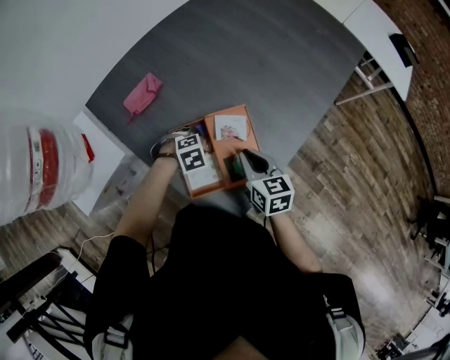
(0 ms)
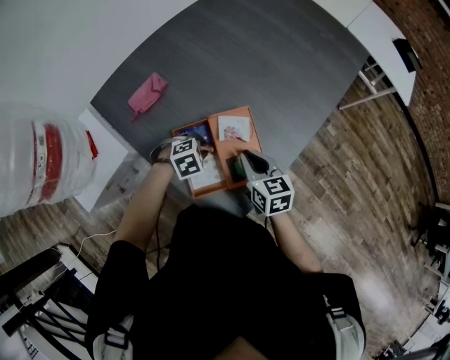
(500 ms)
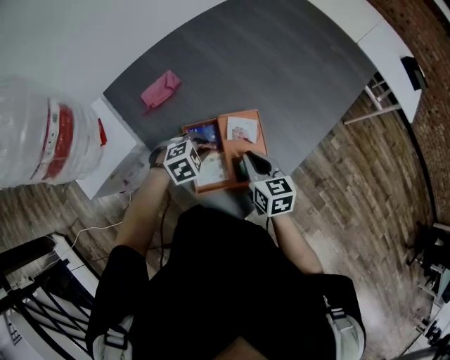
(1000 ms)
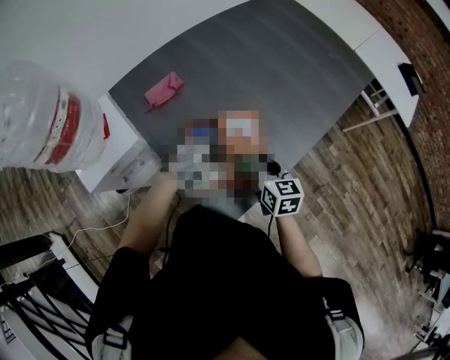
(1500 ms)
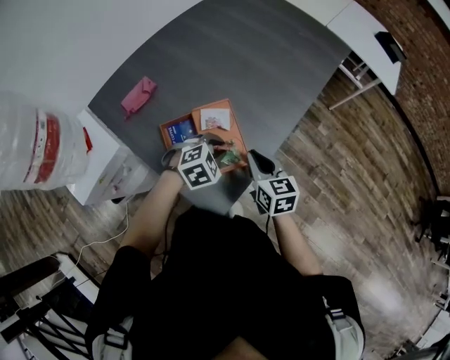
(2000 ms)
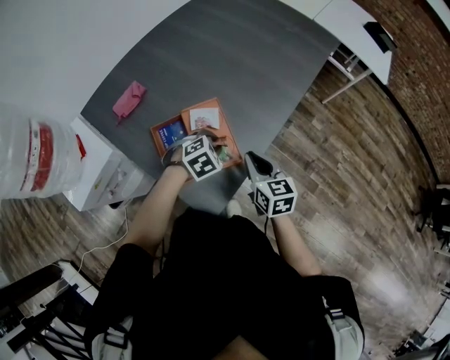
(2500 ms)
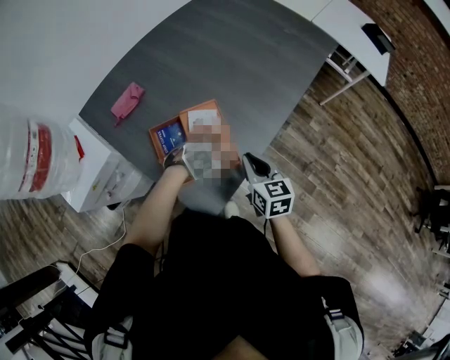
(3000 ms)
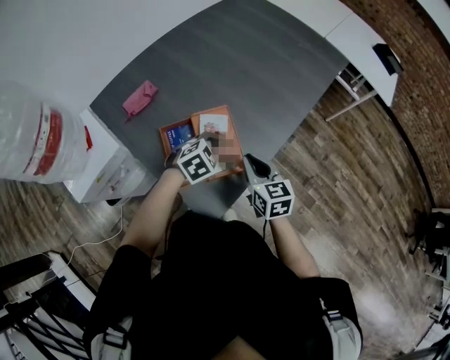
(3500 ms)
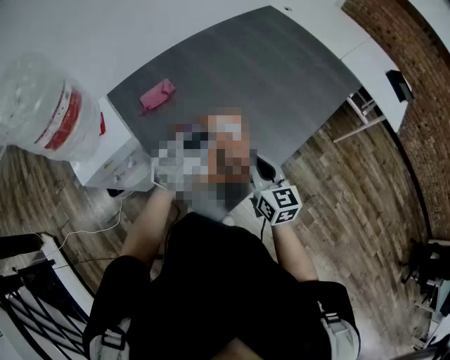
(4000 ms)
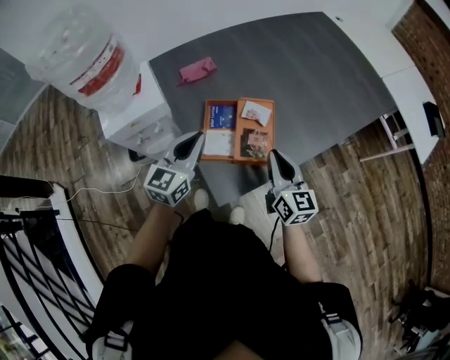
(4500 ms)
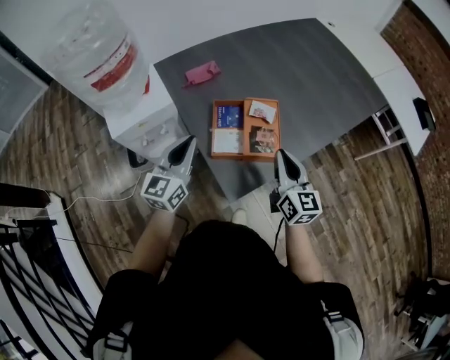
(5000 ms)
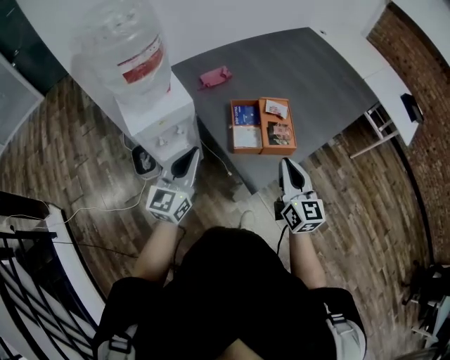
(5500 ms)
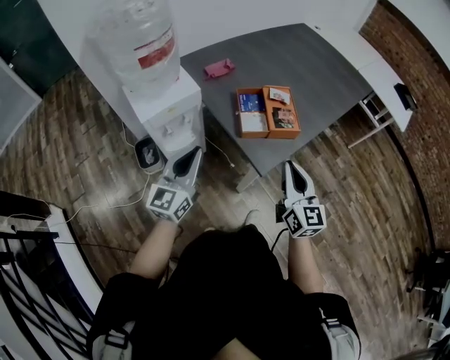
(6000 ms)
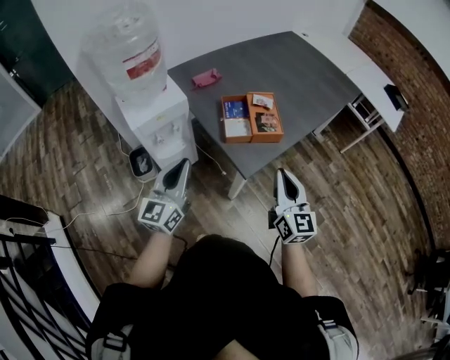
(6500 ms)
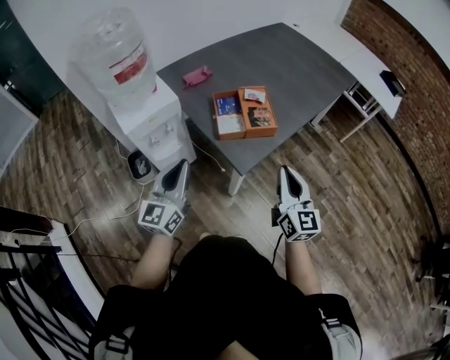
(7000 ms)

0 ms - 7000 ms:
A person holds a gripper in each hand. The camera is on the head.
0 ms - 2000 ms: The left gripper is displaced upward by about 10 cm, turns by some 20 degrees, and closes; the right gripper shifts by approximately 5 cm.
2000 ms - 3500 ms: The left gripper opens its fingers.
3500 ms - 5000 ms: The right gripper goes roughly 5 cm upward, and turns by some 20 degrees. The left gripper moves roughly 30 cm, tips its fingers upward by about 50 degrees, and closes.
5000 ms - 7000 ms: Both grippers move backward, about 20 cm.

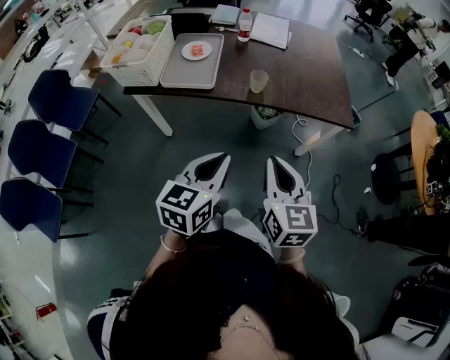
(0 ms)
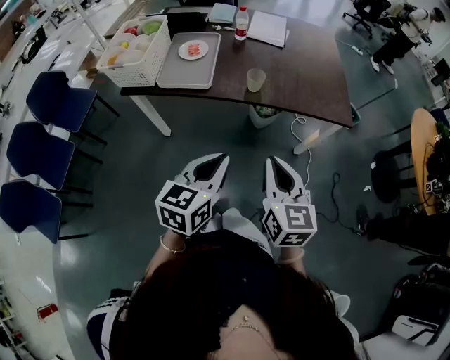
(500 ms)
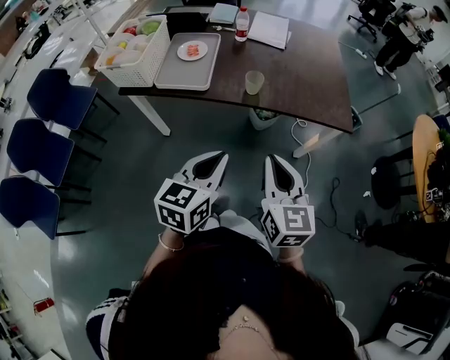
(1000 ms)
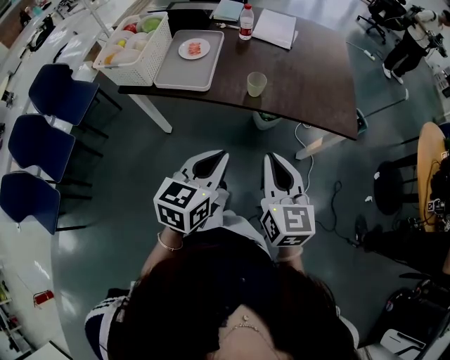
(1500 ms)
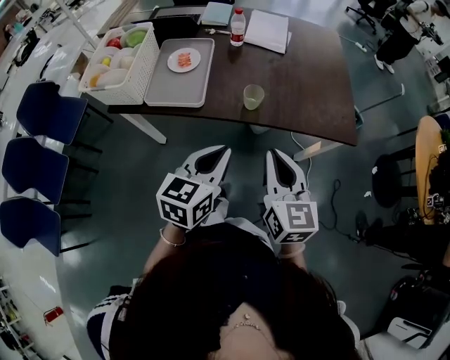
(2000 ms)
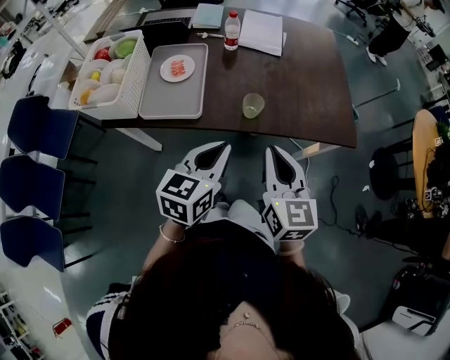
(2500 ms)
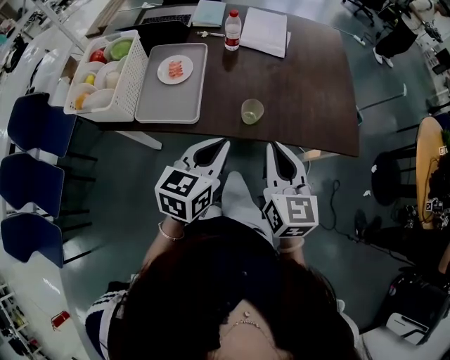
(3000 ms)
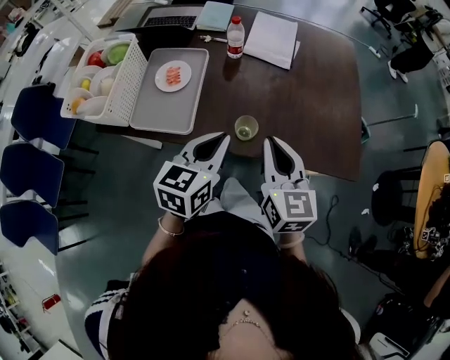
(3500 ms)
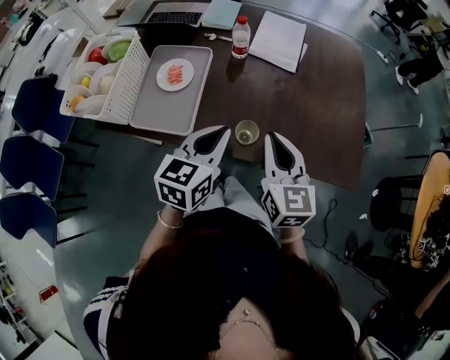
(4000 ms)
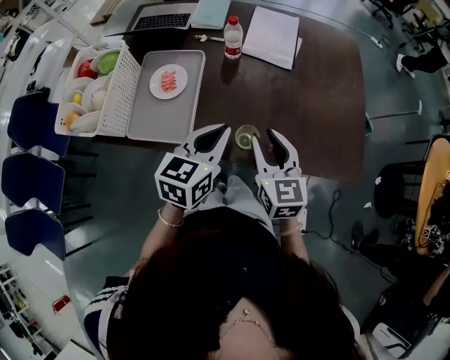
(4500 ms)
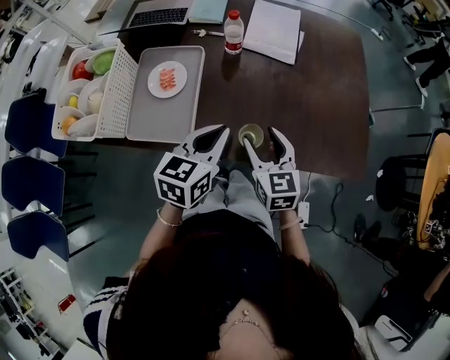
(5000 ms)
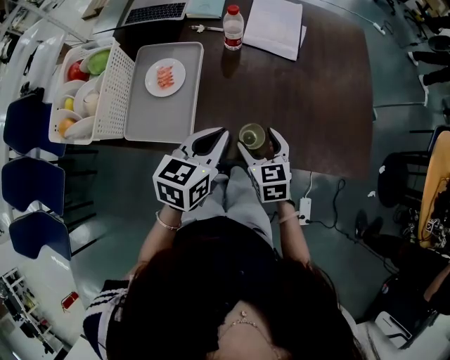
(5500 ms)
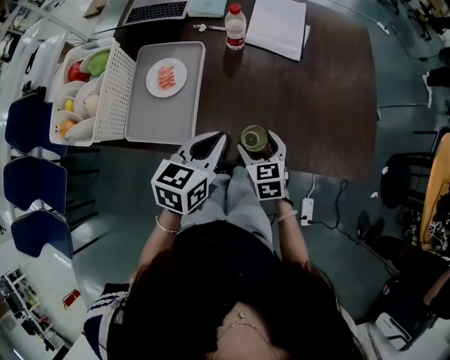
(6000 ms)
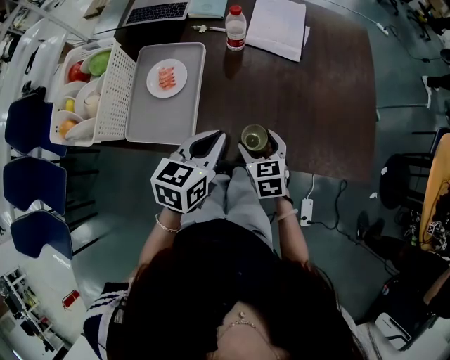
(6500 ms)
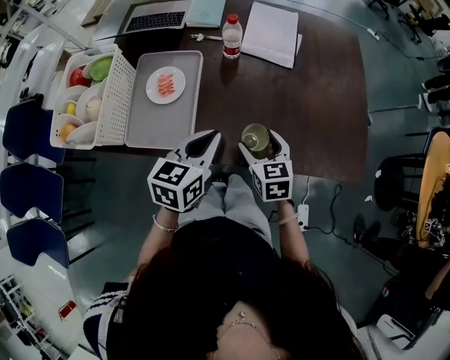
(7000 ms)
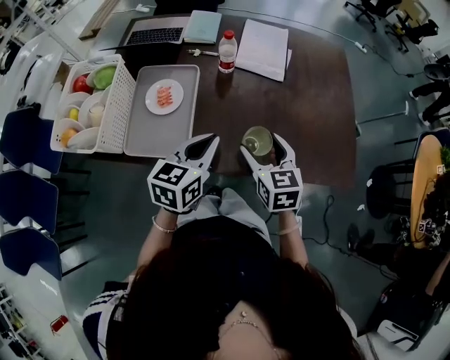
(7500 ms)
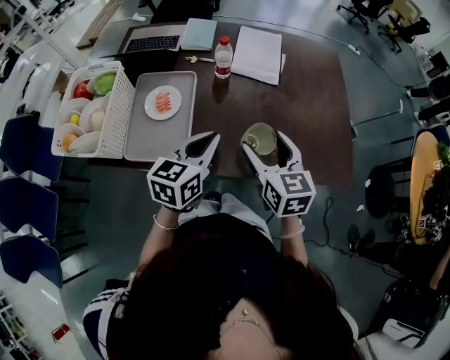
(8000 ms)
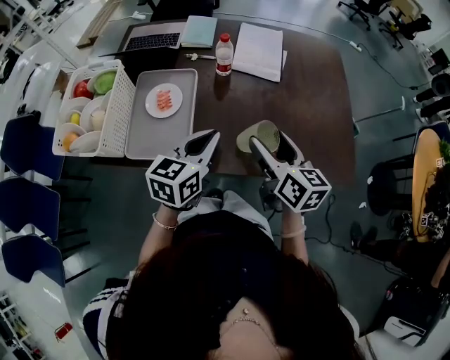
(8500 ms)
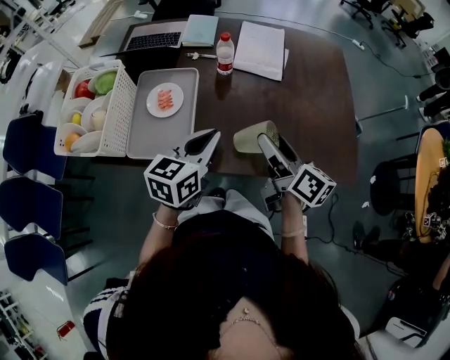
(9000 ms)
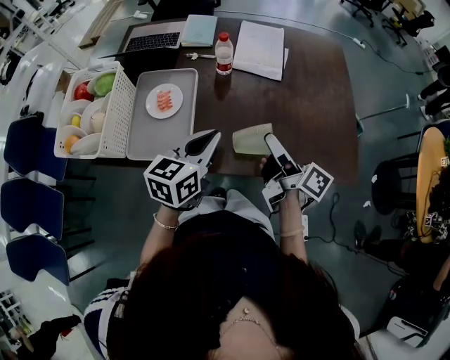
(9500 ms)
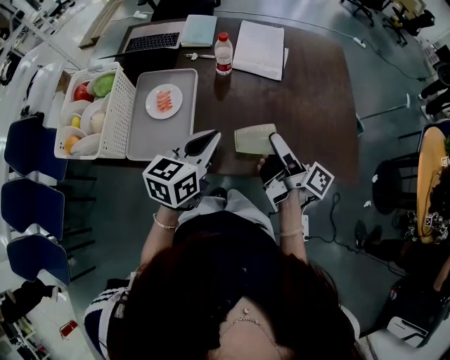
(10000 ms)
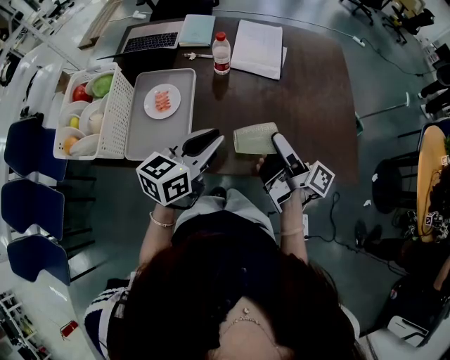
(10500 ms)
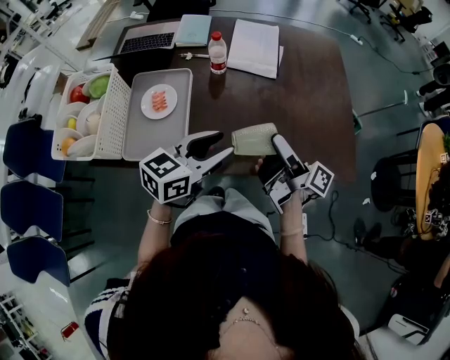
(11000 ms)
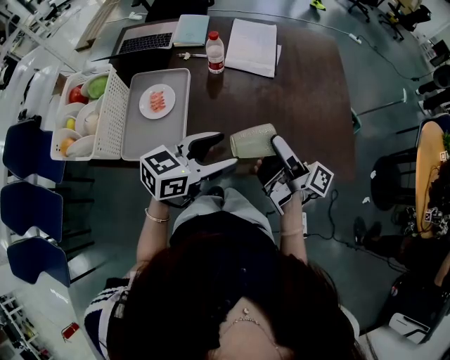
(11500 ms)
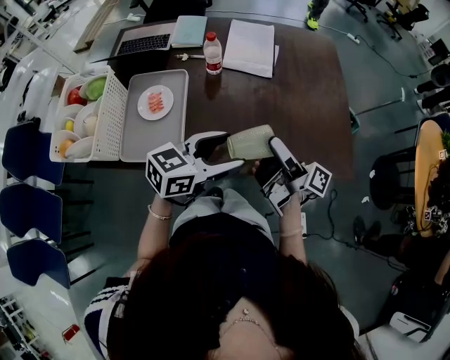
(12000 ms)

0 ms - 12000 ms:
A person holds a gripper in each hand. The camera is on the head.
0 ms - 2000 ms: The two grippers go some 15 cm forward.
2000 ms - 4000 ms: The grippers both shift forward by approximately 20 cm.
4000 ms - 6000 ms: The left gripper shifts some 5 cm downward, while the right gripper goes some 20 cm downward, turns by approximately 30 degrees, and opens.
6000 ms - 8000 ms: The right gripper goes approximately 20 cm upward. Meanwhile the left gripper goes roughly 5 cm upward.
8000 ms - 10000 ms: The right gripper ends up roughly 5 cm from where it was, and rolls clockwise, seen from behind, by approximately 70 degrees.
10000 ms - 12000 ms: The left gripper goes roughly 10 cm to the right, changes its angle by roughly 30 degrees, and opens up.

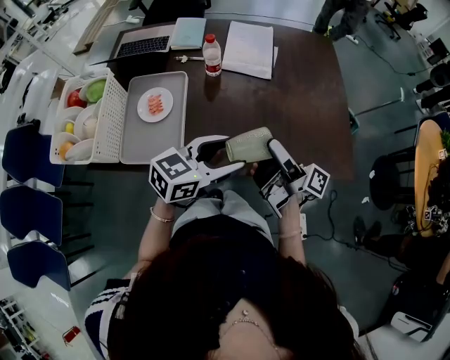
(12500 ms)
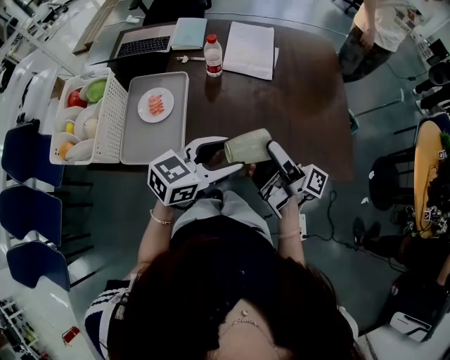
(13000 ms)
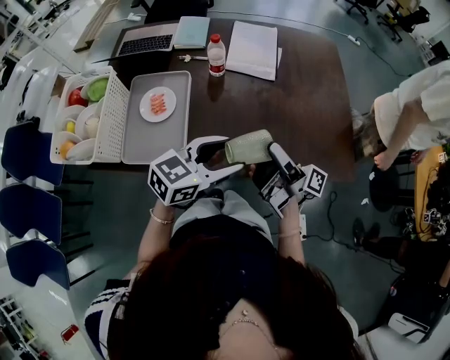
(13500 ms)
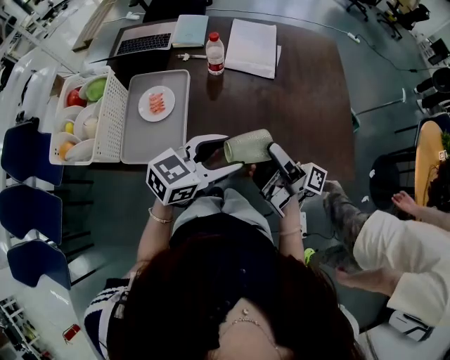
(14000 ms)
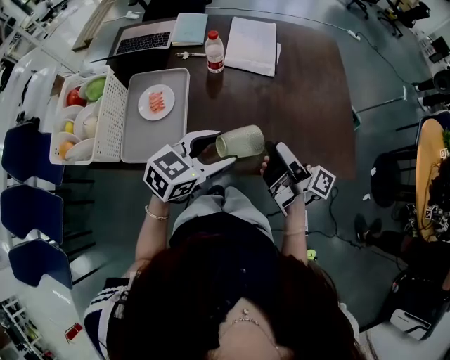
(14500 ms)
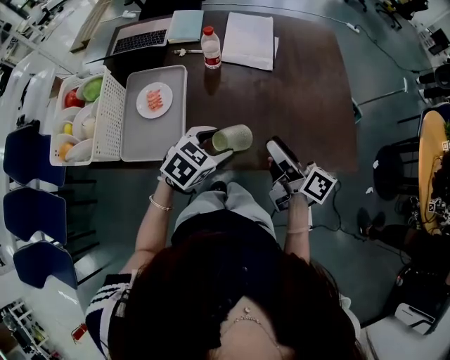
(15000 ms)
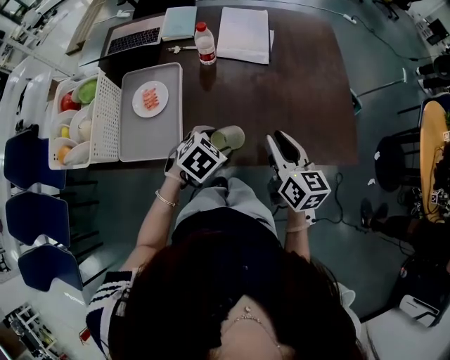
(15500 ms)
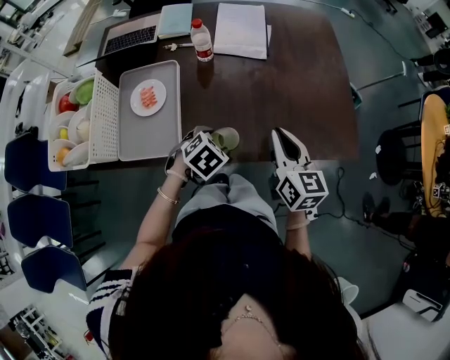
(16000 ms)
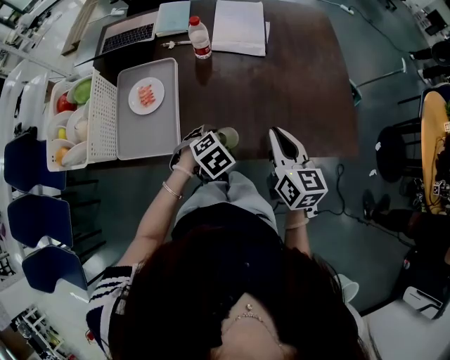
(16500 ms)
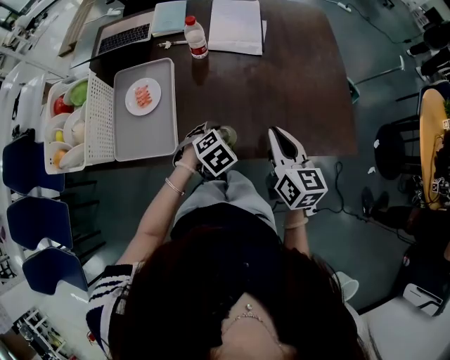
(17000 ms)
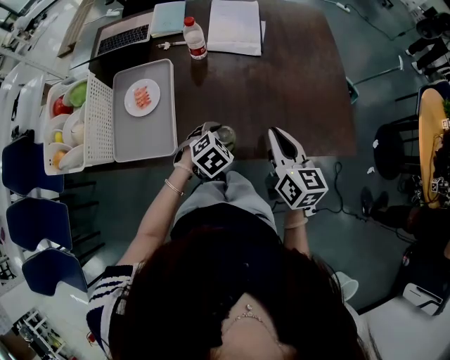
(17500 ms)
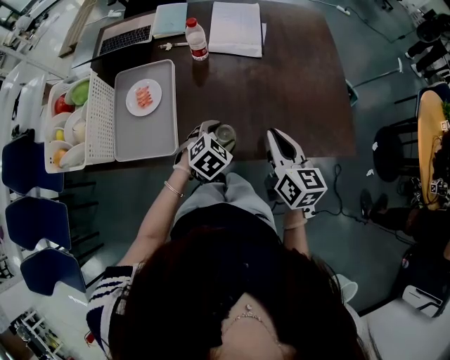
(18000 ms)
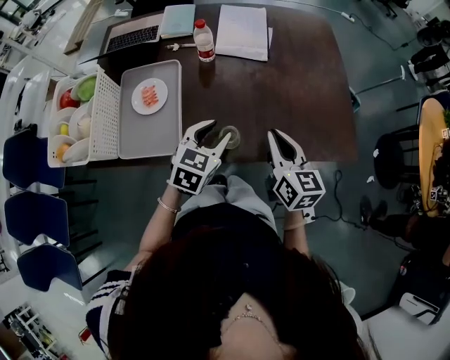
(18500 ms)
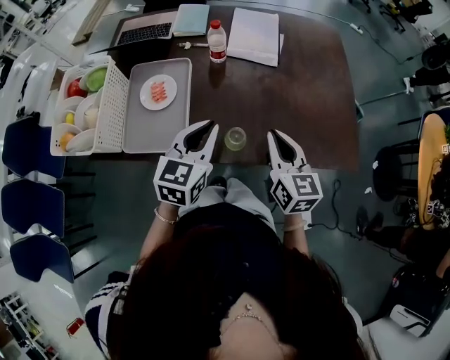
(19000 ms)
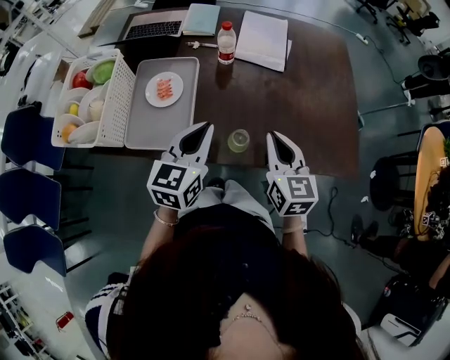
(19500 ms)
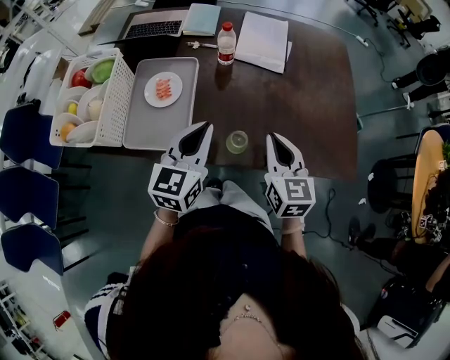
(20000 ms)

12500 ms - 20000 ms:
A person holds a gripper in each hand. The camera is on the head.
12500 ms - 14500 ms: The grippers move only a little.
14500 ms - 16500 ms: The right gripper twists about 60 degrees counterclockwise, seen from behind, and closes its fingers; the left gripper moves downward, roughly 15 cm, and tilts its fingers some 50 degrees downward.
16500 ms - 18000 ms: There are only small adjustments of the grippers.
18000 ms - 20000 ms: The right gripper travels to the left by some 5 cm. Meanwhile the left gripper moves upward and to the left, roughly 20 cm, points its fingers about 40 degrees further upward, and closes up.
